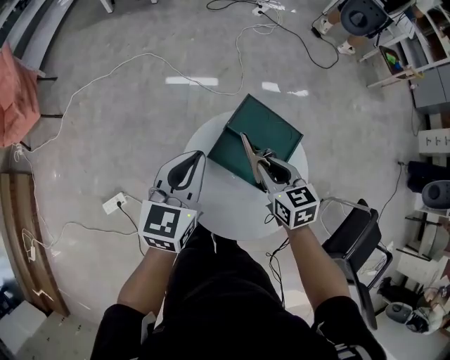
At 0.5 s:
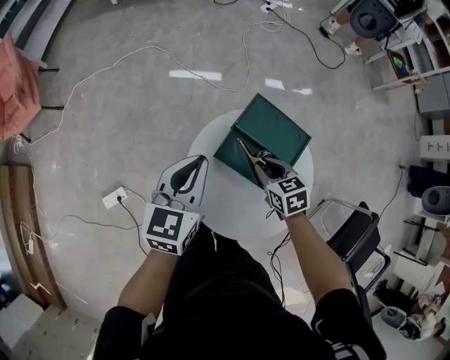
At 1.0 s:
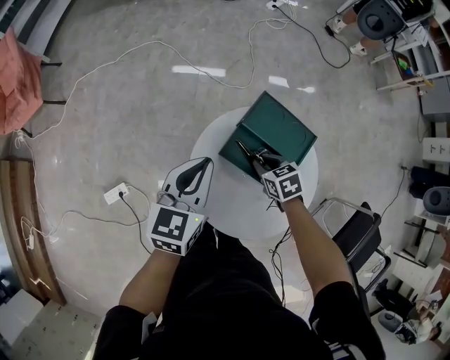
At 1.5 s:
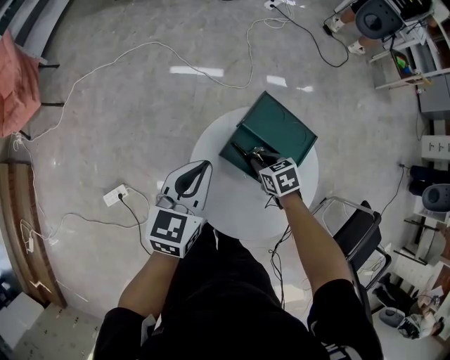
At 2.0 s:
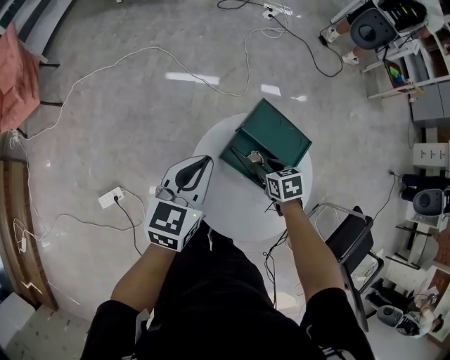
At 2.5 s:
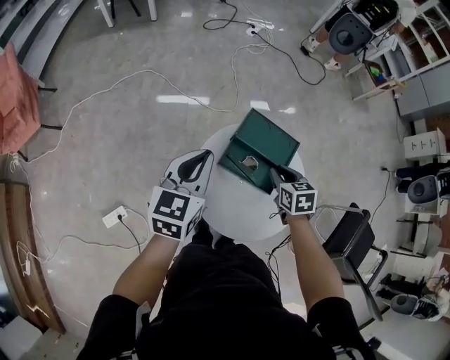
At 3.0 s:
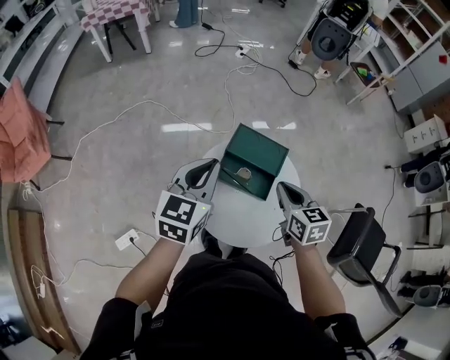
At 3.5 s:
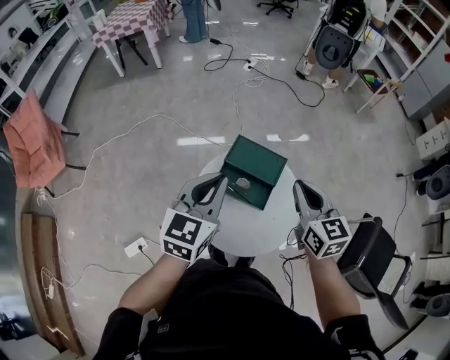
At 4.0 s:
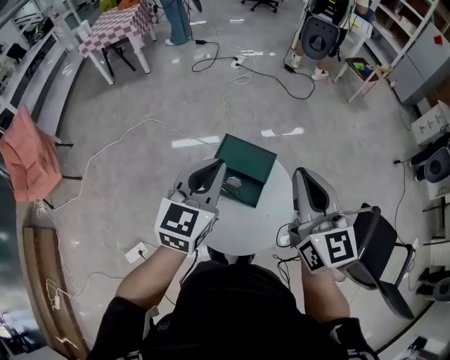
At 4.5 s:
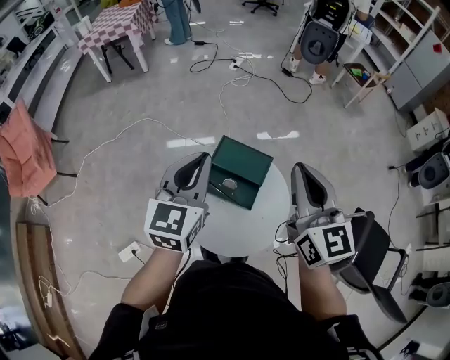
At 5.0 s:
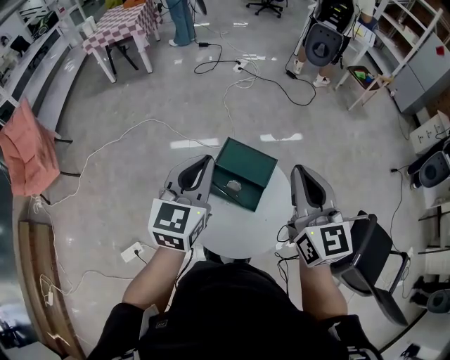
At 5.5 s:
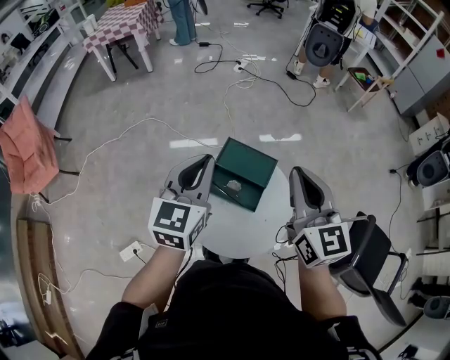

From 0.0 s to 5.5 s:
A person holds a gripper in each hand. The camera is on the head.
From 0.0 s to 2.0 s: The right gripper heads downward, covering approximately 15 cm, turns by approximately 20 degrees, and opens up.
From 2.0 s to 3.5 s: The left gripper moves upward and to the right, about 15 cm; the right gripper is displaced upward by approximately 30 cm, tips its fingers upward by some 40 degrees, and closes up.
From 3.5 s to 5.5 s: The left gripper moves roughly 5 cm. Meanwhile the right gripper goes about 10 cm upward.

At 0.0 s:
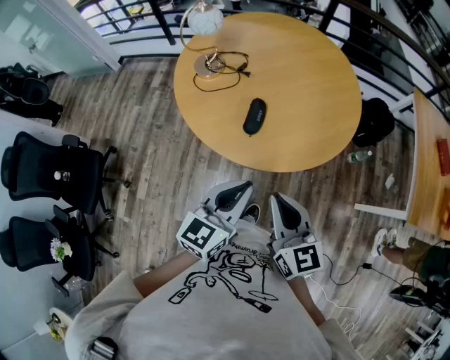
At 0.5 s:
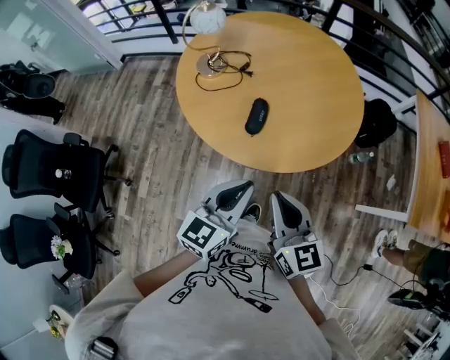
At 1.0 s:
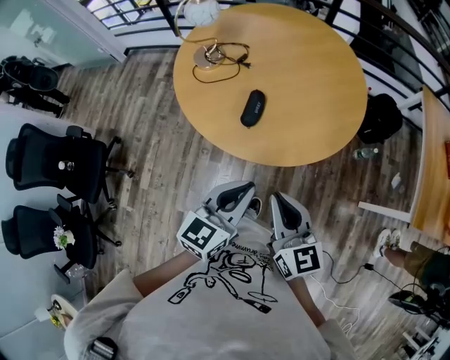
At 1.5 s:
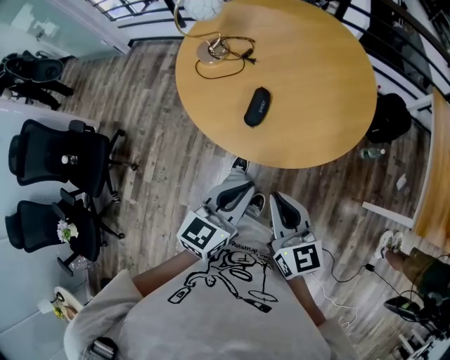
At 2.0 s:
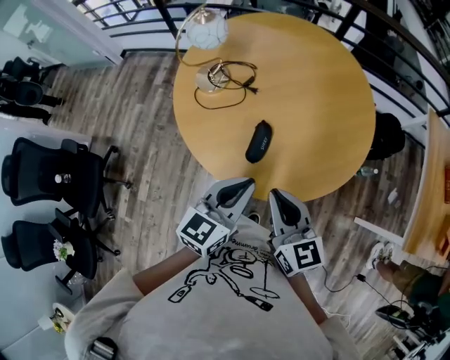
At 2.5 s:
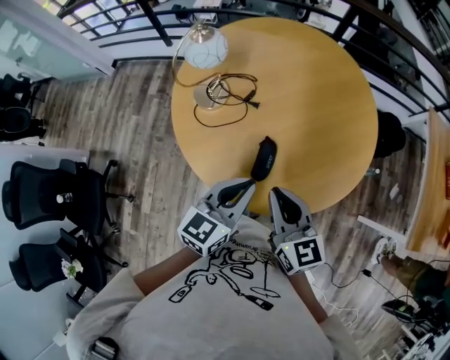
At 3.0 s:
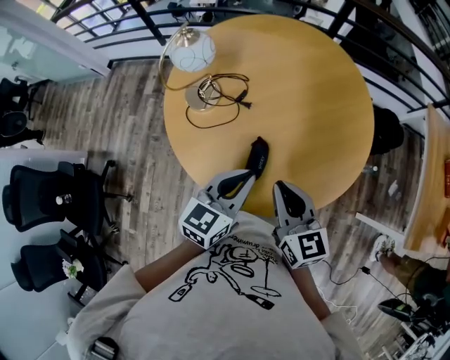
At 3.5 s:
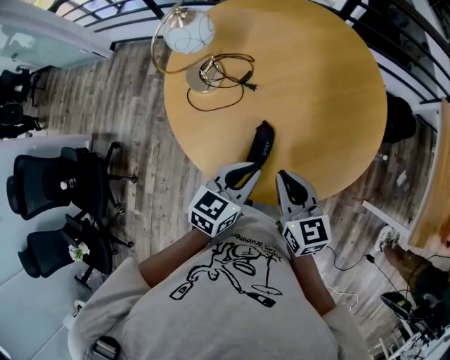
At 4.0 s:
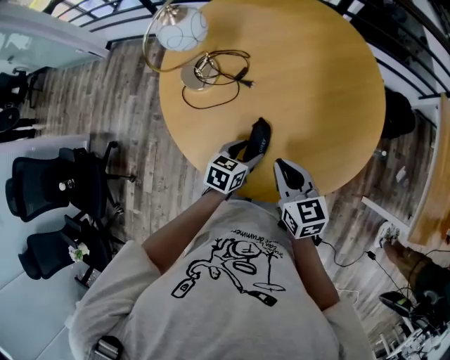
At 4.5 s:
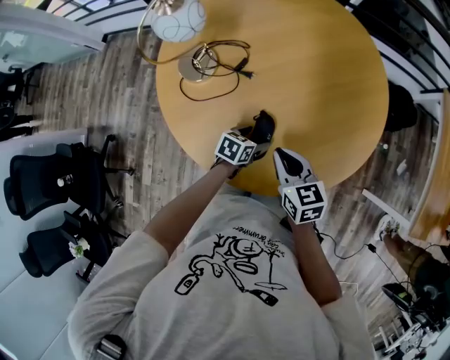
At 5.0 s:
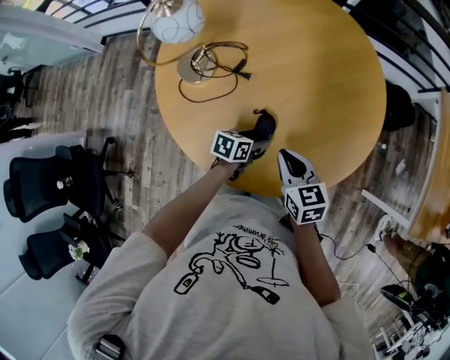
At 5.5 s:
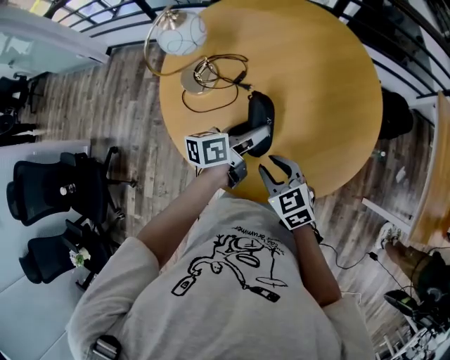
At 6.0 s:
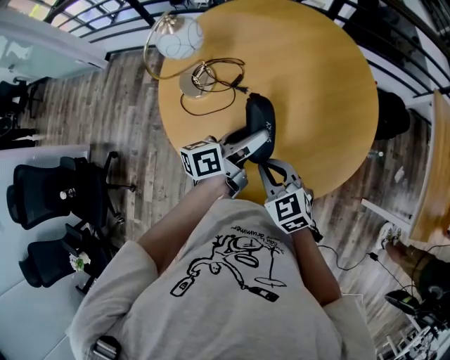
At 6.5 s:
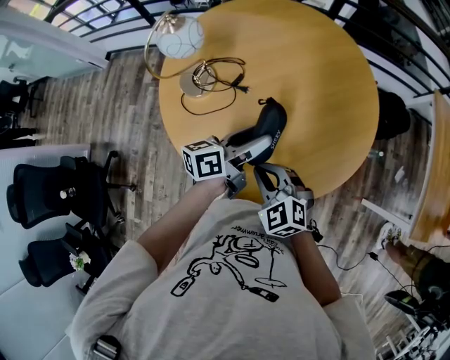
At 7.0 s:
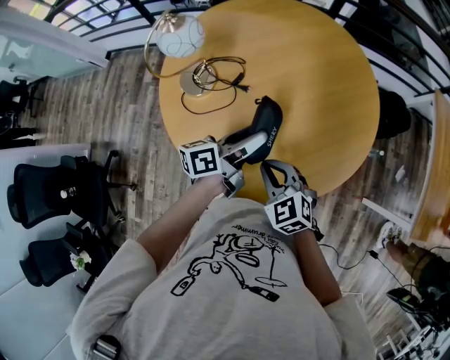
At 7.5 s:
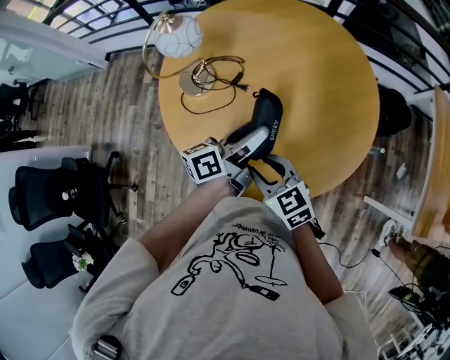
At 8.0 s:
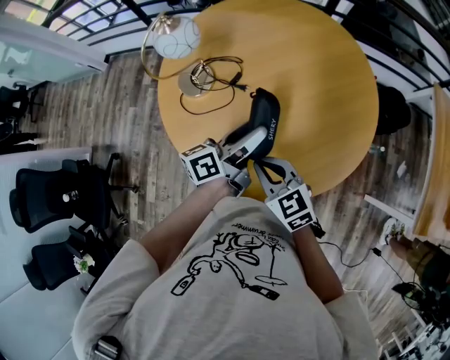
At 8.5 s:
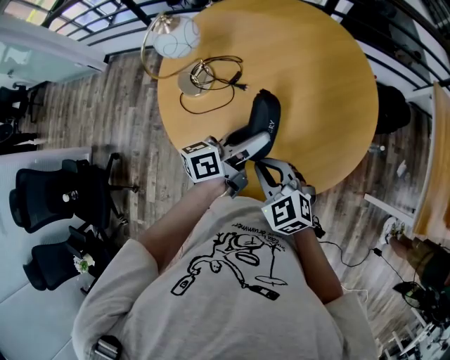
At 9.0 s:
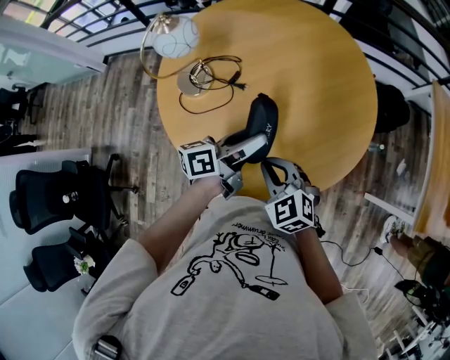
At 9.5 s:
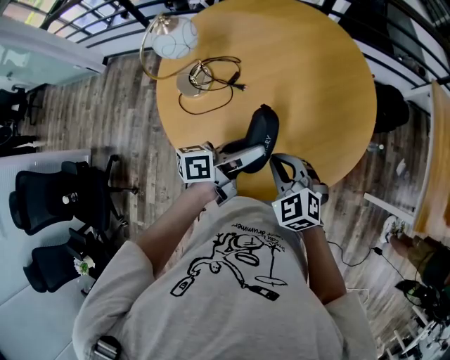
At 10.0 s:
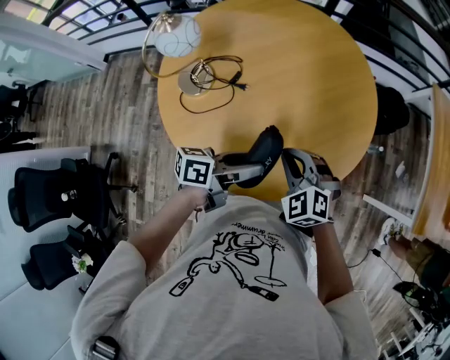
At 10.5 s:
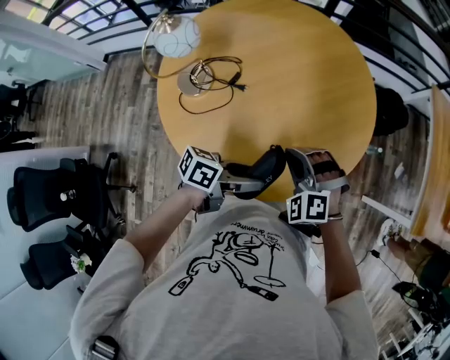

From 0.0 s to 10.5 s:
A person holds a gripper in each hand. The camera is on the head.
From 0.0 s to 2.0 s: The two grippers go roughly 15 cm forward.
From 2.0 s to 4.0 s: The left gripper heads downward and forward, covering some 25 cm, swivels some 30 degrees, and opens. Meanwhile the right gripper travels forward and downward by about 15 cm.
From 4.0 s to 6.5 s: The left gripper is displaced upward by some 15 cm, and angles its fingers upward, by some 40 degrees. Meanwhile the right gripper changes place by about 5 cm, rolls counterclockwise, seen from behind, by some 40 degrees, and opens, then closes again.
From 6.5 s to 8.5 s: The right gripper opens and closes again.
From 8.5 s to 10.5 s: The left gripper changes place by some 15 cm, and swivels about 40 degrees. Meanwhile the right gripper moves some 10 cm, and rotates approximately 40 degrees.

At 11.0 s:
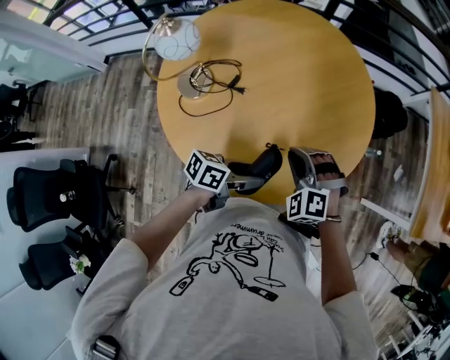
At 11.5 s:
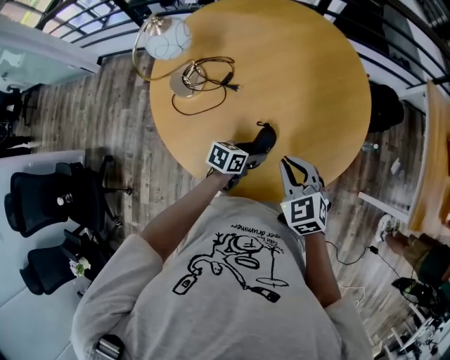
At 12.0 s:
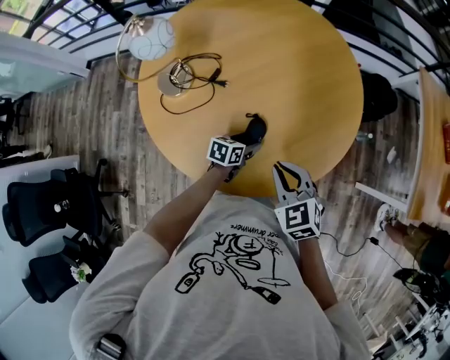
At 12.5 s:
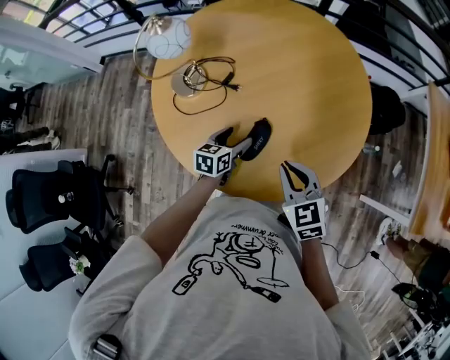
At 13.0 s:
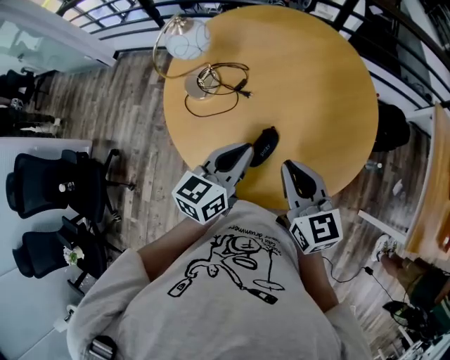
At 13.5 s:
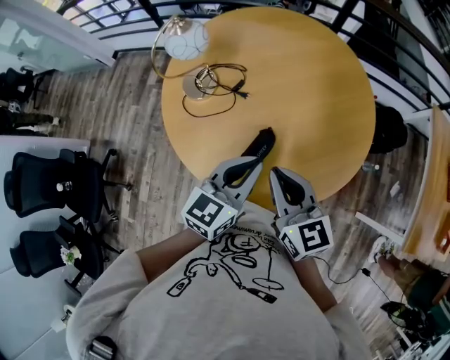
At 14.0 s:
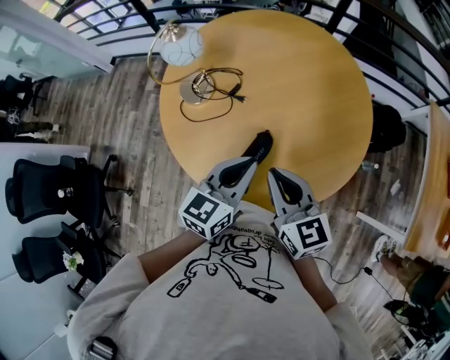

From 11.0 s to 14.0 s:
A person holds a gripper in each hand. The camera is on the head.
From 11.0 s to 12.5 s: The left gripper moves some 15 cm, and turns by roughly 40 degrees. Meanwhile the right gripper twists roughly 50 degrees clockwise, seen from behind.
From 12.5 s to 14.0 s: The left gripper moves upward, about 25 cm, turns by about 20 degrees, and closes its fingers. The right gripper is displaced upward by approximately 10 cm, and swivels approximately 20 degrees.

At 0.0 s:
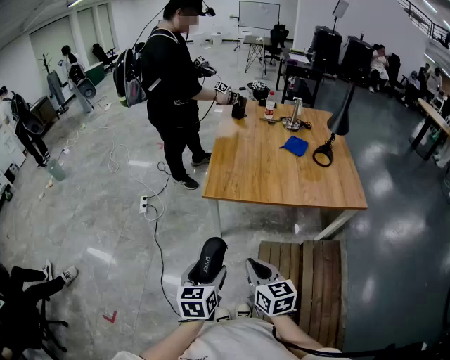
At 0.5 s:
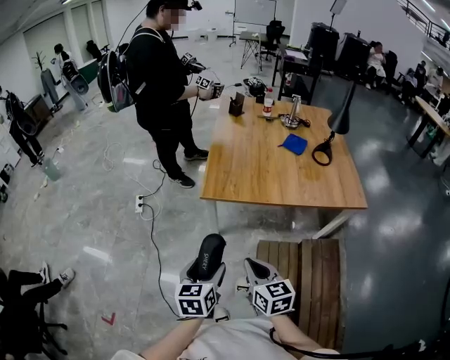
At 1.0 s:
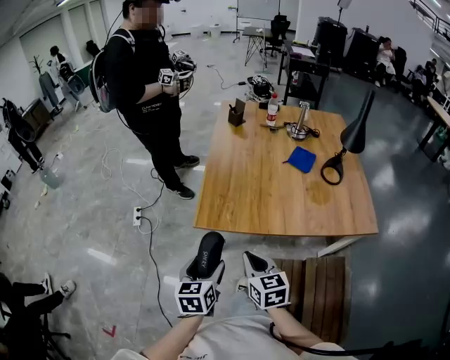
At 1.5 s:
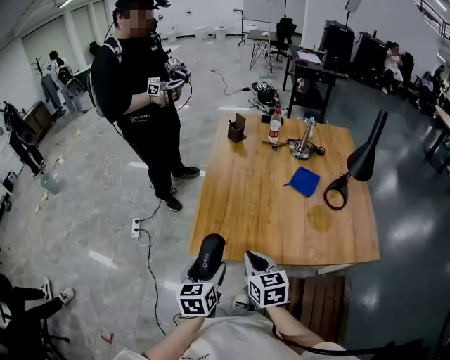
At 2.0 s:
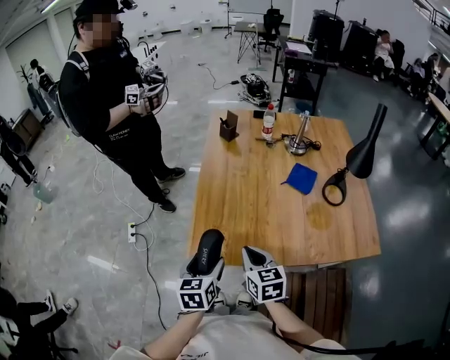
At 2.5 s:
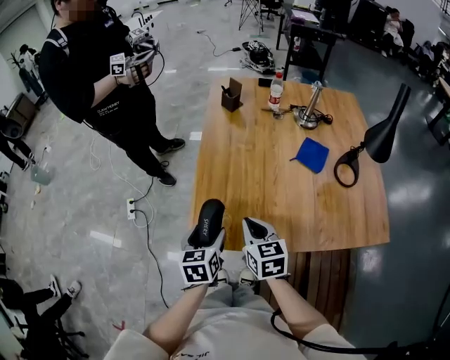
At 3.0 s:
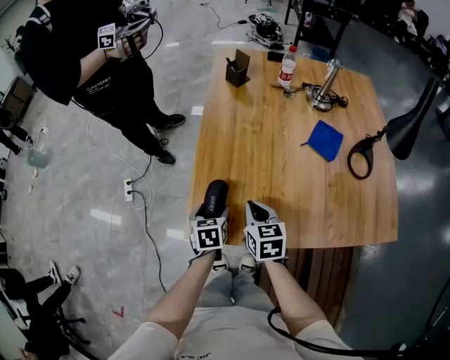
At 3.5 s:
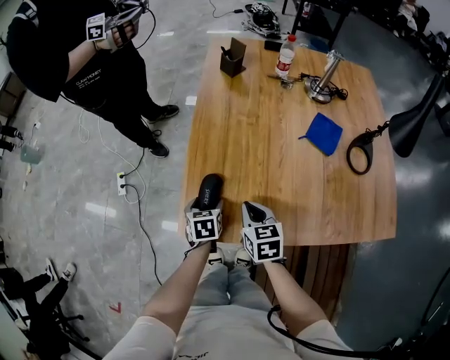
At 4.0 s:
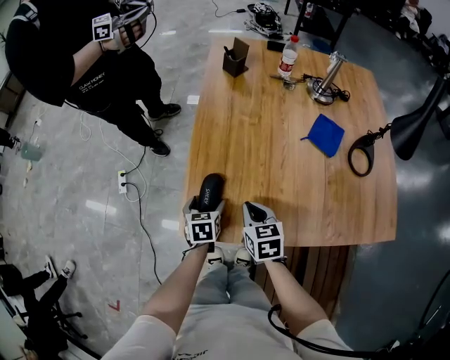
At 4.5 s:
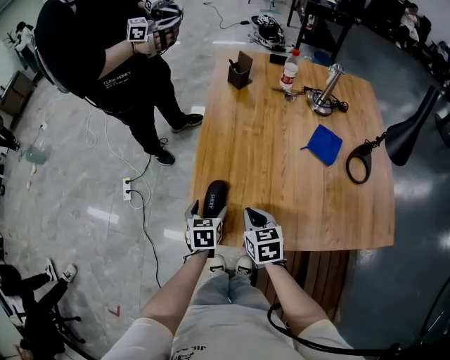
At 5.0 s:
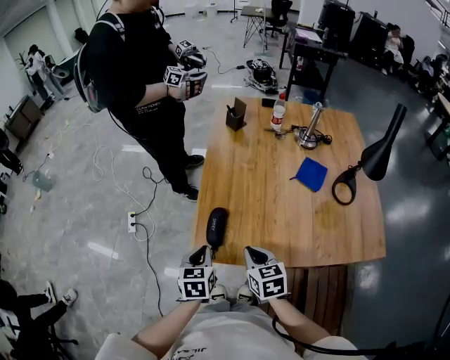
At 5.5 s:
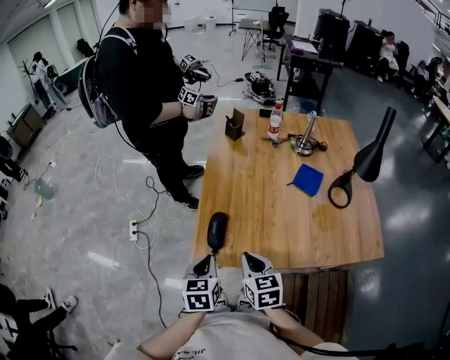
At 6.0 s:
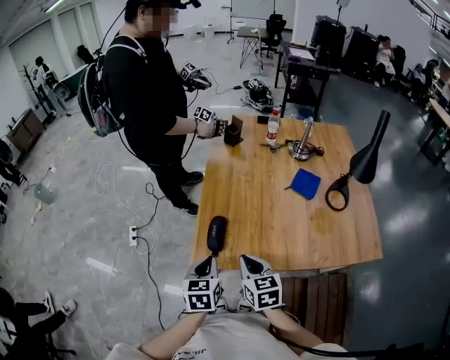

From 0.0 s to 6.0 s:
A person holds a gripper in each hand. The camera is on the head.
From 0.0 s to 2.0 s: Both grippers are carried forward, roughly 40 cm.
From 2.0 s to 4.0 s: Both grippers travel together downward and forward, approximately 25 cm.
From 4.0 s to 6.0 s: Both grippers move upward and backward, roughly 25 cm. The left gripper closes its fingers.

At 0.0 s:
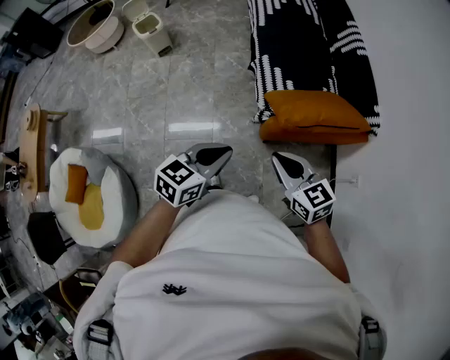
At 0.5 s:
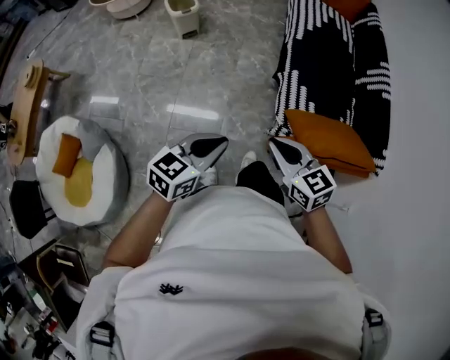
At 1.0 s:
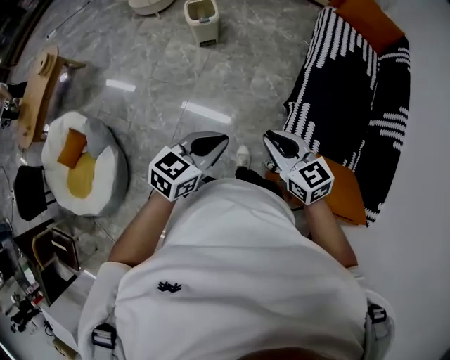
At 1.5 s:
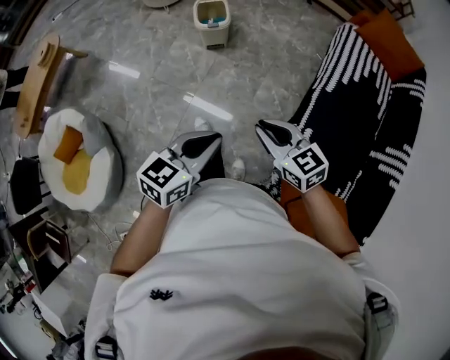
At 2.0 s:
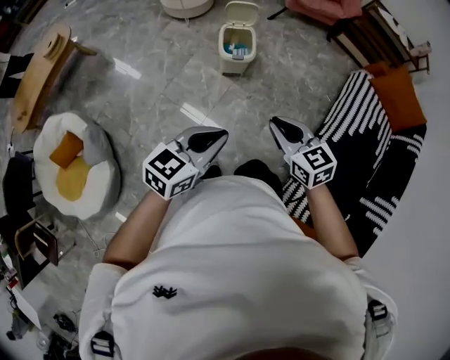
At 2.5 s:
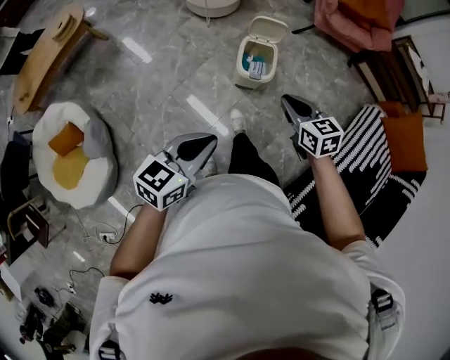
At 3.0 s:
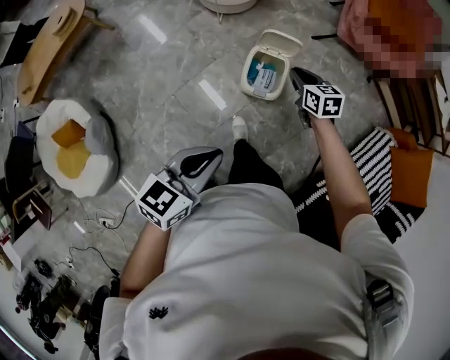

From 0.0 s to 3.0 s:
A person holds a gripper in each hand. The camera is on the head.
From 0.0 s to 1.5 s: The two grippers travel together, roughly 50 cm. The left gripper swivels about 30 degrees. Meanwhile the right gripper swivels some 30 degrees.
From 1.5 s to 3.0 s: The two grippers travel together, forward, roughly 60 cm. The left gripper rotates roughly 20 degrees.
